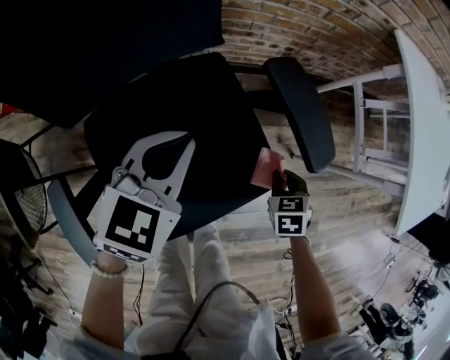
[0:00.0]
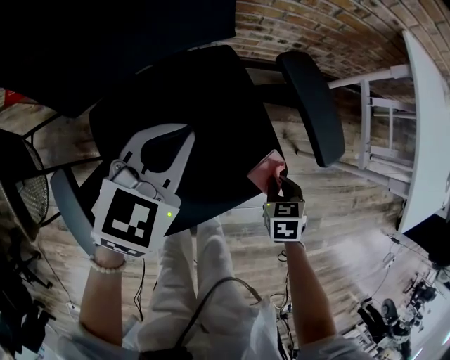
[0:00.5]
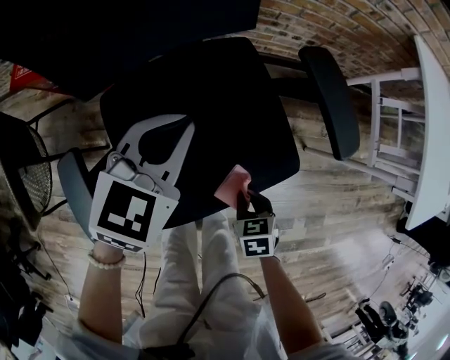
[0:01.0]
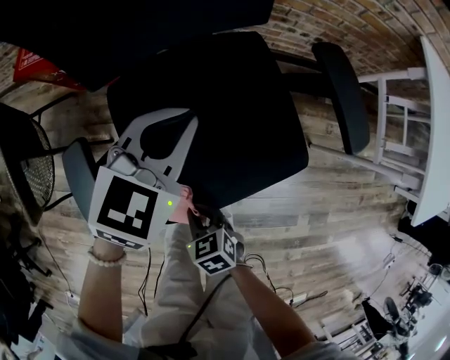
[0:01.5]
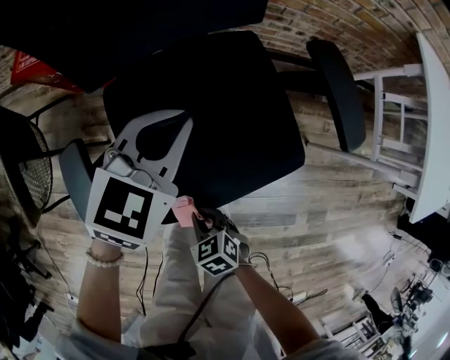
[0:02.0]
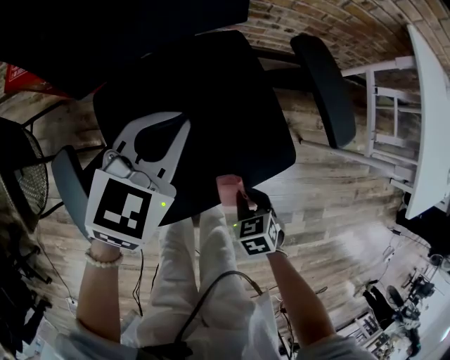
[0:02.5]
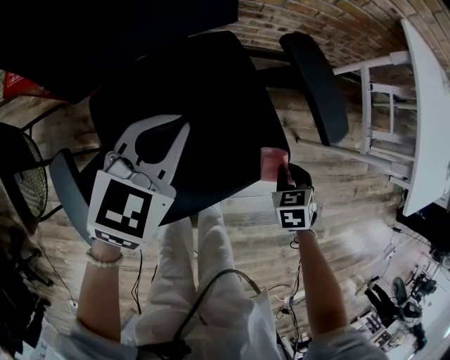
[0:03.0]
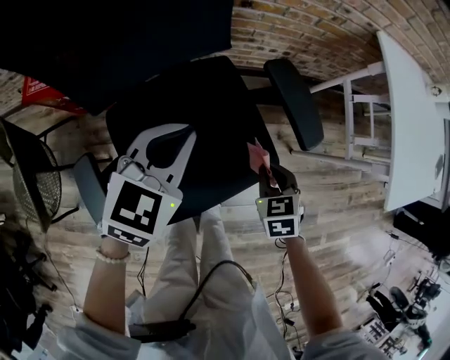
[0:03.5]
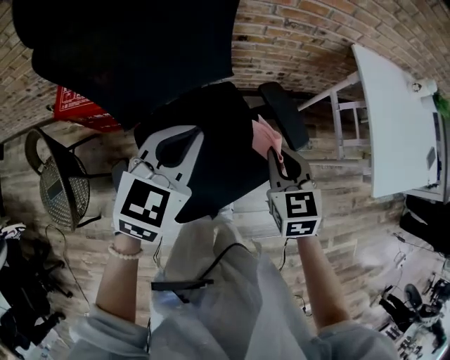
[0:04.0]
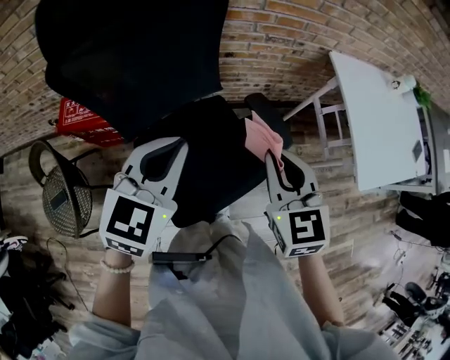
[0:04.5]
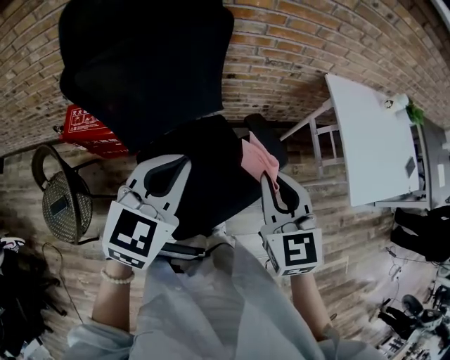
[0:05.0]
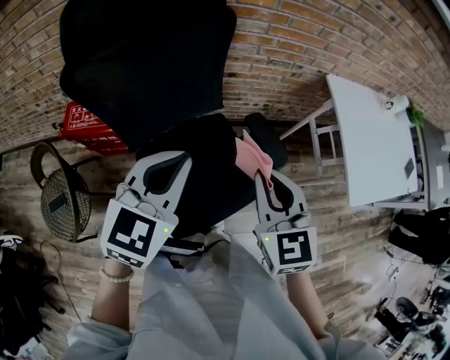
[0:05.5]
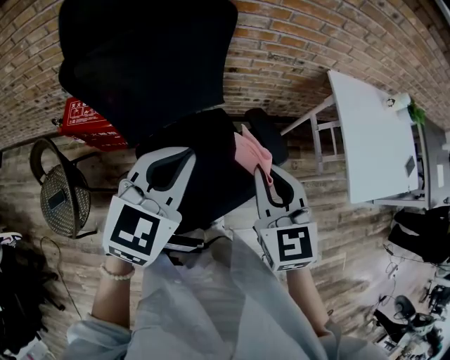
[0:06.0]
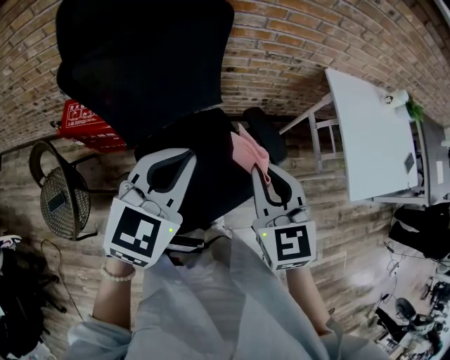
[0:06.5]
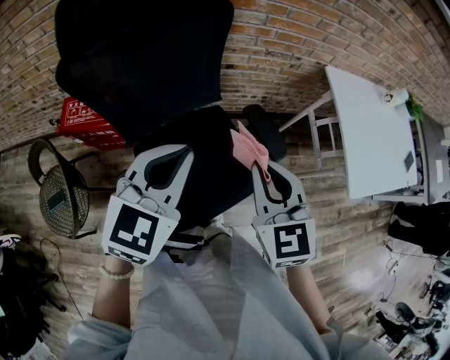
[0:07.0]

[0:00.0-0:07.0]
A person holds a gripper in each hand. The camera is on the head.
0:00.0 to 0:02.0: The right gripper moves roughly 35 cm, and rotates approximately 40 degrees, while the left gripper moves some 10 cm.
0:02.0 to 0:03.5: The right gripper changes place by about 30 cm, and turns by approximately 30 degrees. Meanwhile the left gripper moves upward, roughly 10 cm.
0:03.5 to 0:05.0: Both grippers travel together upward, about 35 cm. The right gripper tips its fingers upward by approximately 40 degrees.
0:05.0 to 0:07.0: The grippers stay close to where they were, moving slightly.

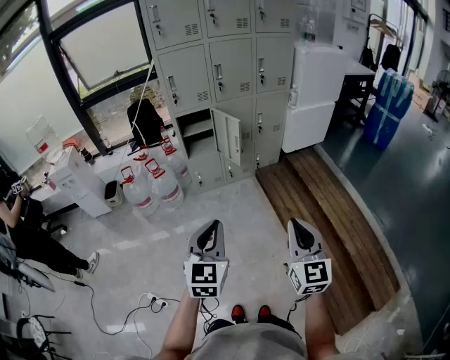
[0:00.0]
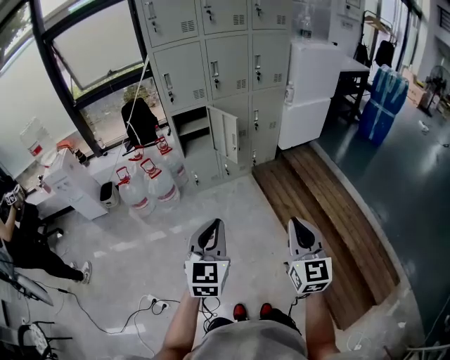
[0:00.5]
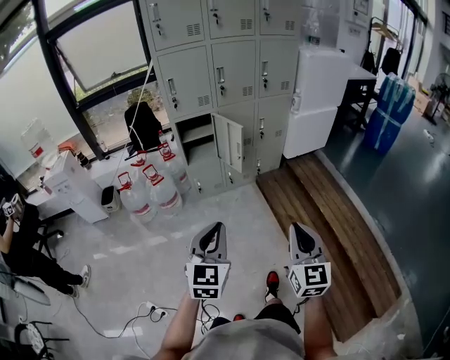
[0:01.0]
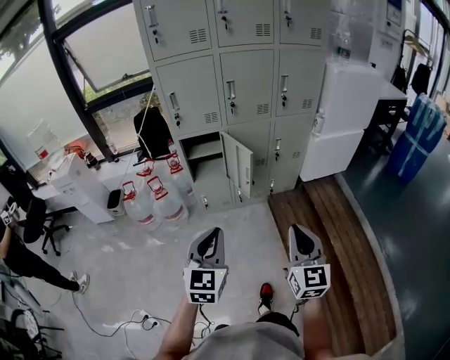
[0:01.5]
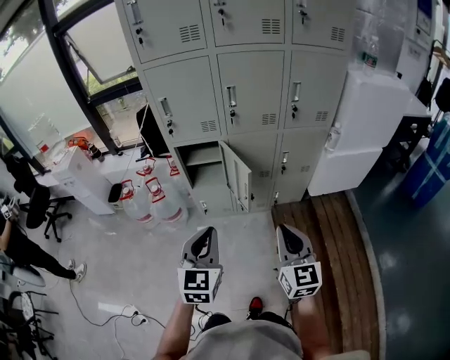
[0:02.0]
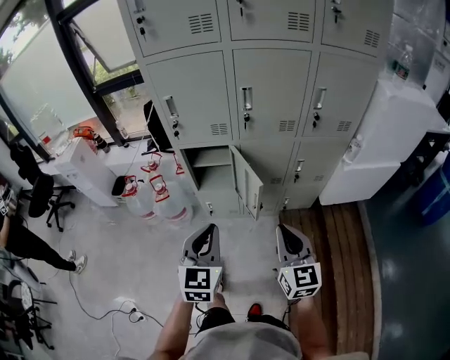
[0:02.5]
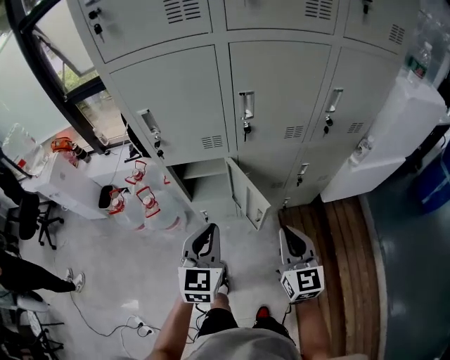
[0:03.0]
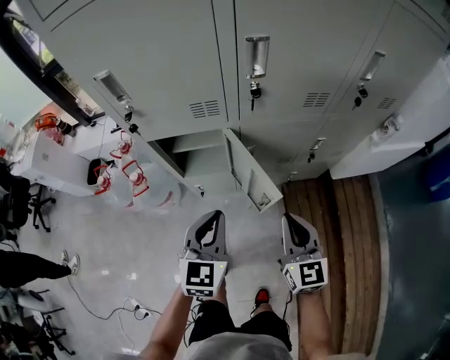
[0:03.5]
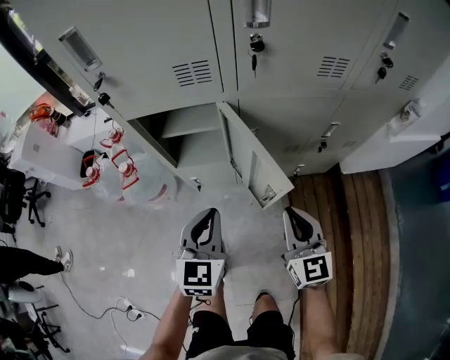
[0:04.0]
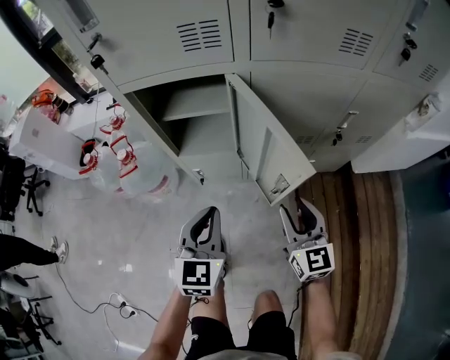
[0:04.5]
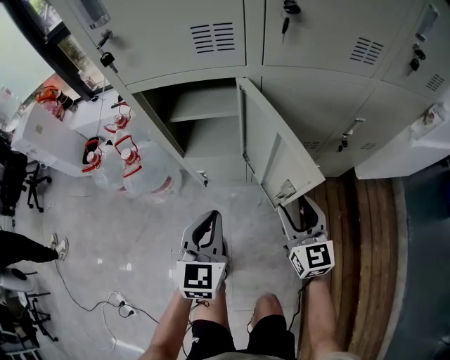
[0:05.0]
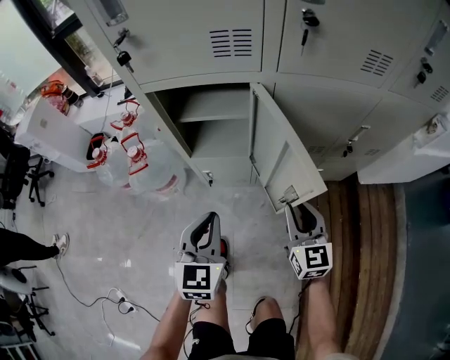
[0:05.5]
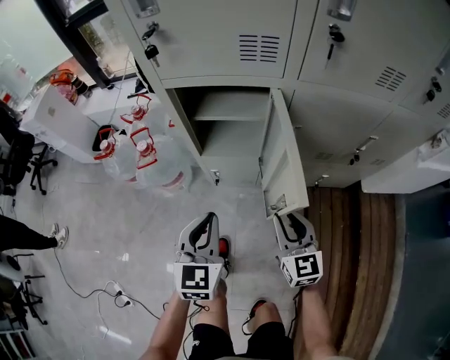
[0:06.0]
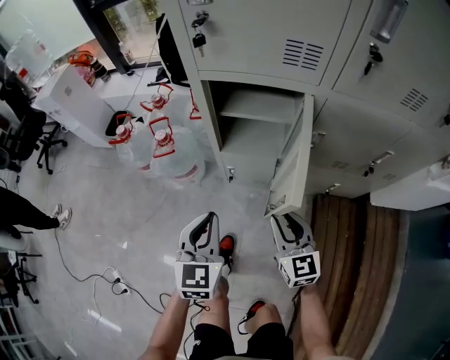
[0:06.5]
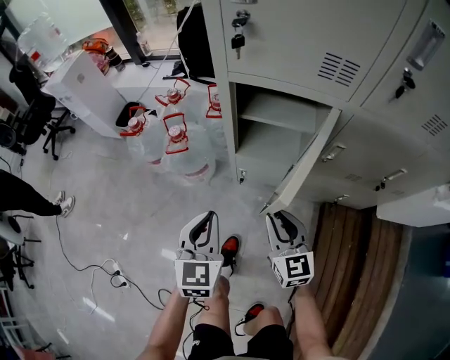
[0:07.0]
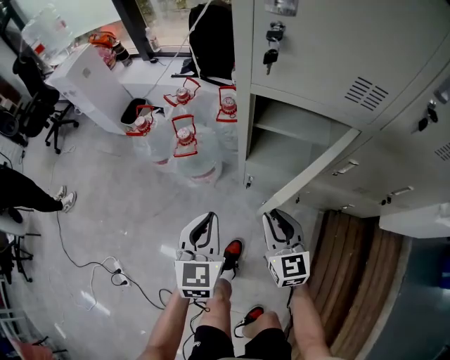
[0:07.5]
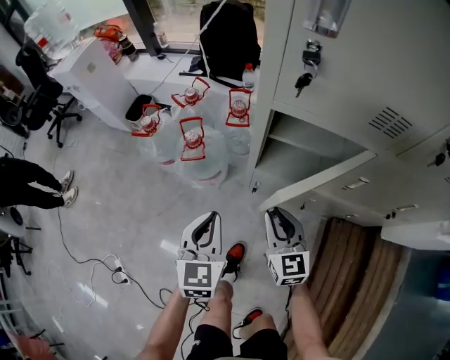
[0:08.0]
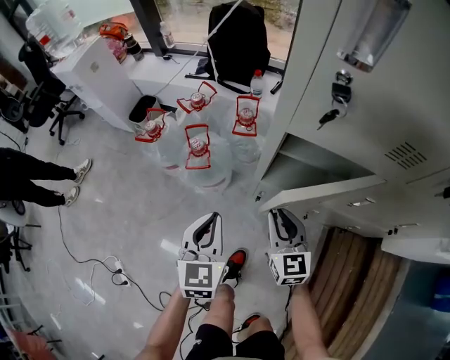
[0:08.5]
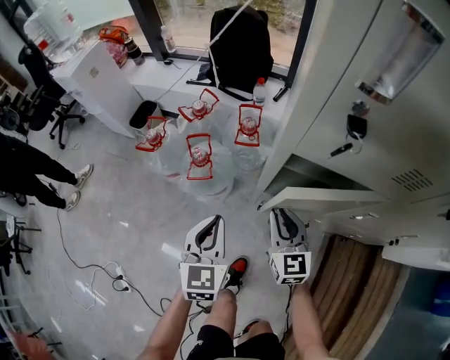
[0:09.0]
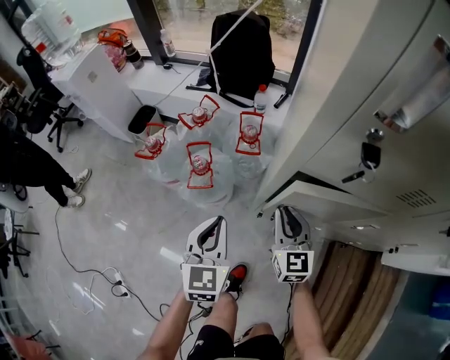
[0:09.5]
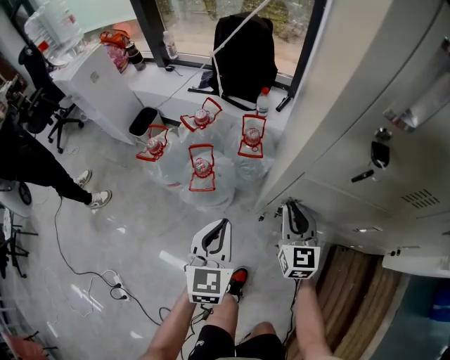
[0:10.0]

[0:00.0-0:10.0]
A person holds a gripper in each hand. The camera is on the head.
0:00.0 to 0:02.0: Both grippers move forward, about 40 cm.
0:02.0 to 0:04.0: The grippers both shift forward and downward by approximately 40 cm.
0:04.0 to 0:06.0: The left gripper travels to the left by roughly 10 cm, while the right gripper shifts about 15 cm downward and to the left, and opens.
0:06.0 to 0:08.0: Both grippers move to the left and forward, approximately 20 cm.
0:08.0 to 0:10.0: Both grippers travel together forward, some 15 cm.

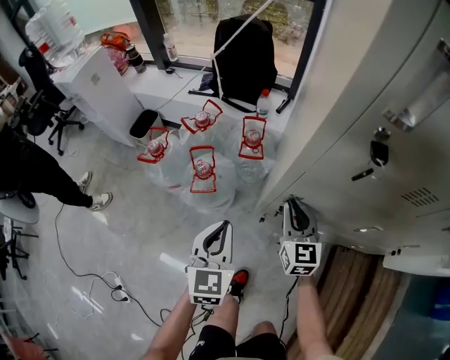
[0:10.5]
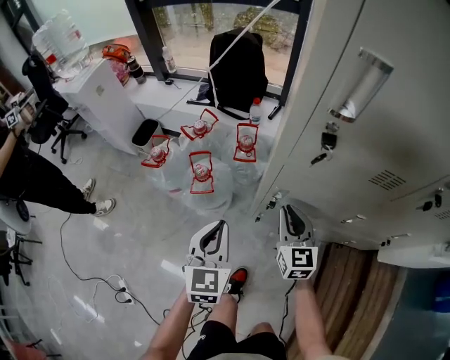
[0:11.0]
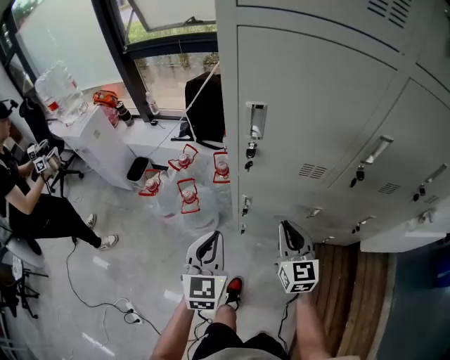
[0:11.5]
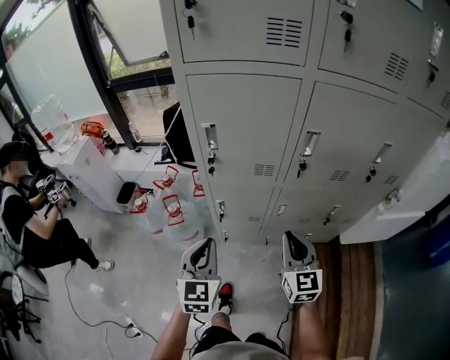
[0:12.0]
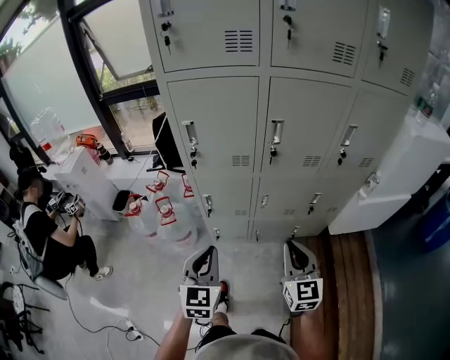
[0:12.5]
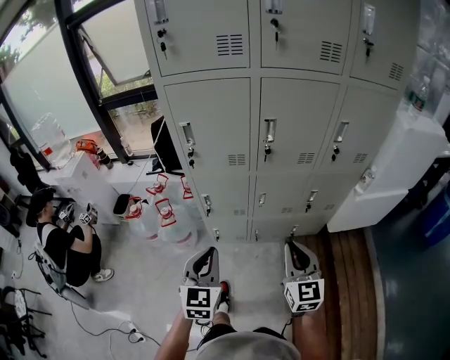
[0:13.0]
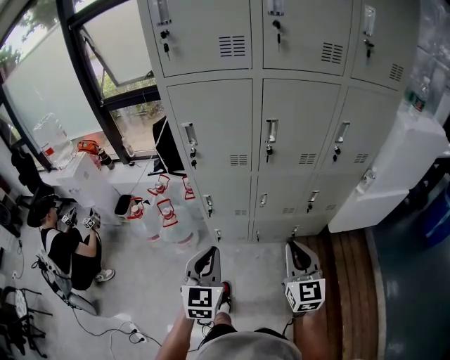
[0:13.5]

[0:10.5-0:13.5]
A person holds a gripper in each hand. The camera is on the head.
0:10.5 to 0:12.0: The two grippers go about 40 cm upward, backward and to the right.
0:12.0 to 0:13.5: The two grippers go some 15 cm backward and to the right.

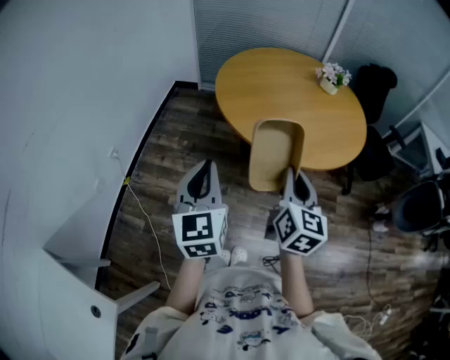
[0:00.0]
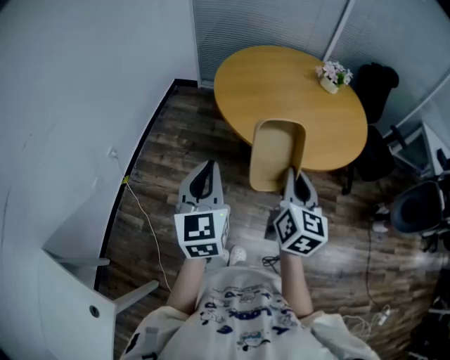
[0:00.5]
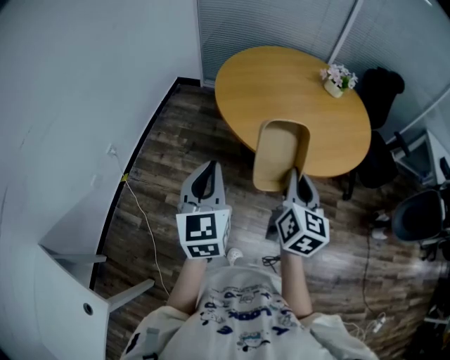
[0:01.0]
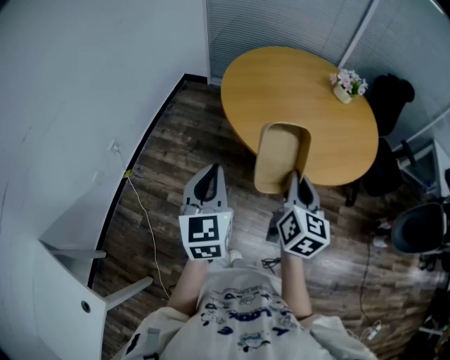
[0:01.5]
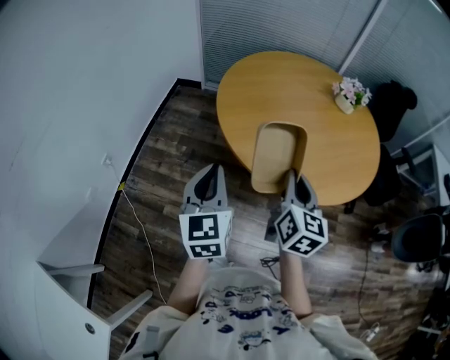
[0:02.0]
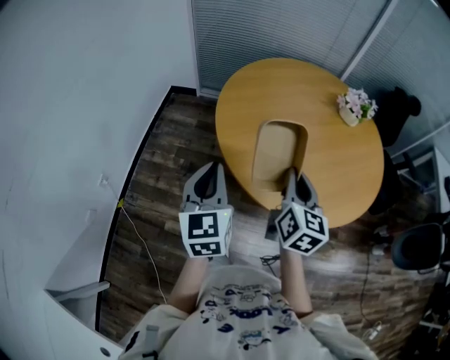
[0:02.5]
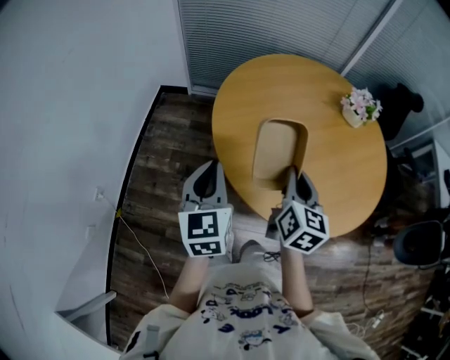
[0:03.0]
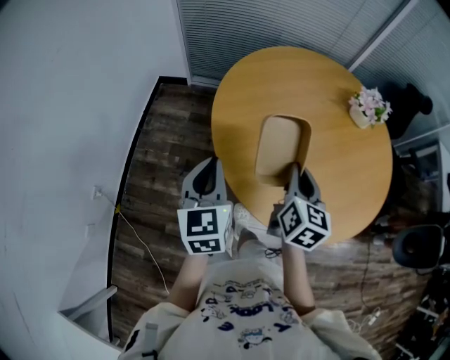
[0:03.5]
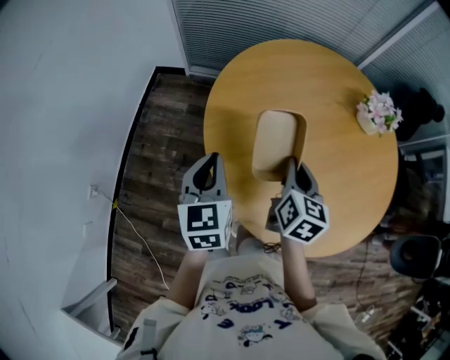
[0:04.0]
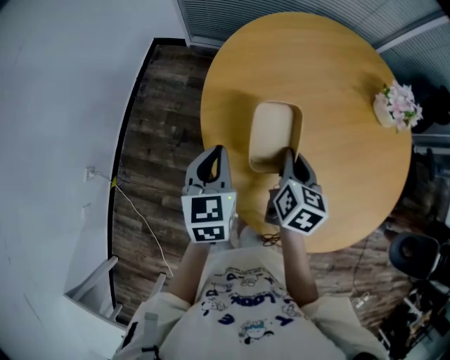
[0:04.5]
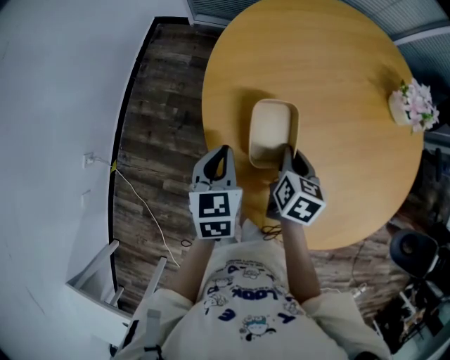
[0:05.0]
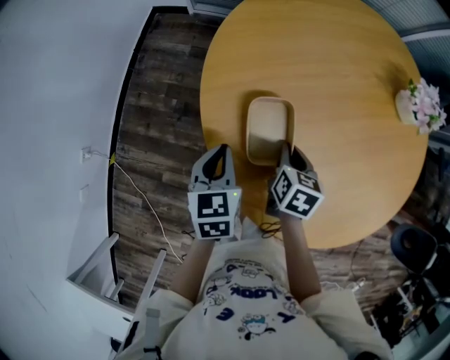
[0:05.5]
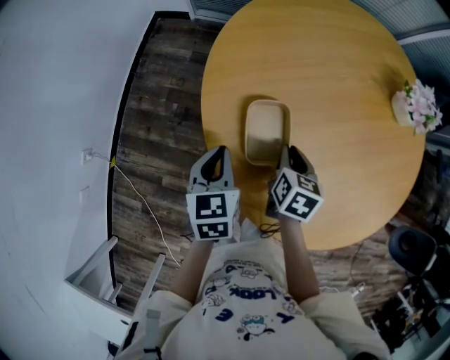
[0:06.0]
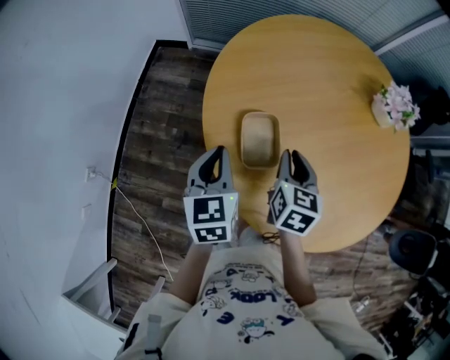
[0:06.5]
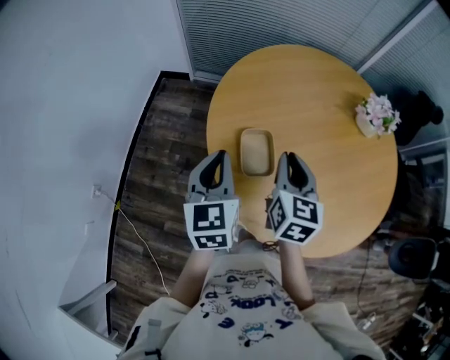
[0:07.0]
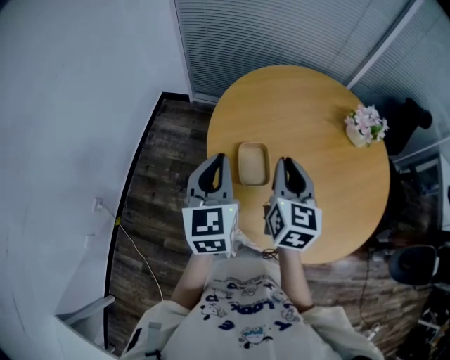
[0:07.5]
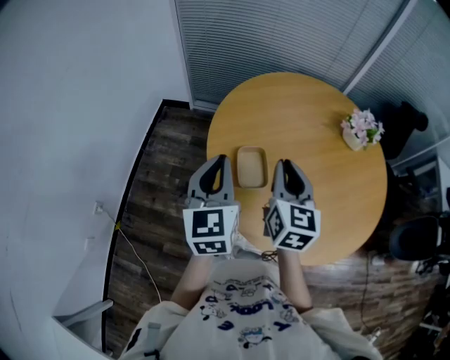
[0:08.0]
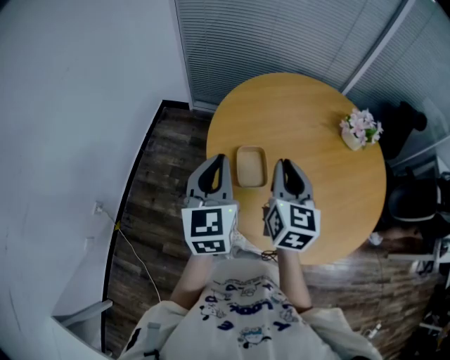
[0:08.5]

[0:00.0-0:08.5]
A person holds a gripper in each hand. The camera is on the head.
0:00.0 to 0:02.0: The grippers both shift forward by about 15 cm.
0:02.0 to 0:04.0: The two grippers go some 35 cm forward.
0:04.0 to 0:06.5: Both grippers travel together downward, approximately 5 cm.
0:06.5 to 0:08.5: The two grippers go about 15 cm upward. The left gripper swivels approximately 20 degrees. Meanwhile the right gripper changes its angle by some 20 degrees.
